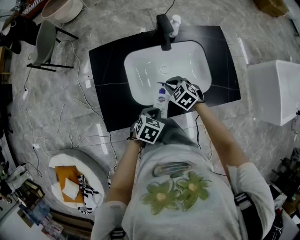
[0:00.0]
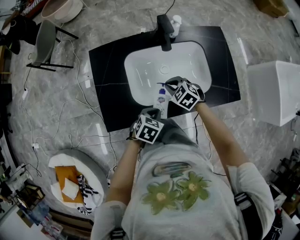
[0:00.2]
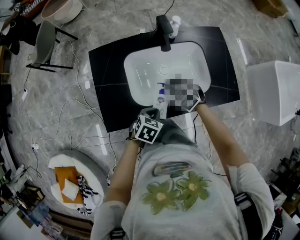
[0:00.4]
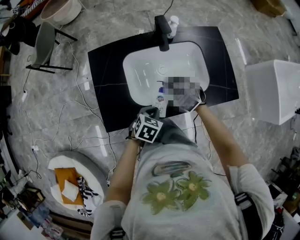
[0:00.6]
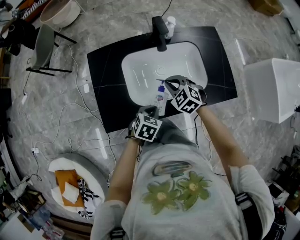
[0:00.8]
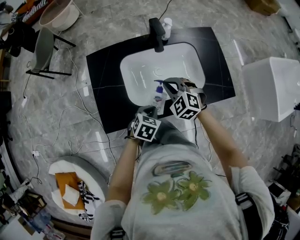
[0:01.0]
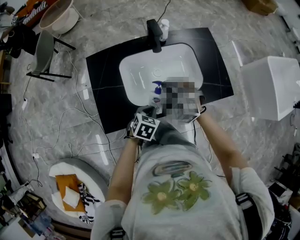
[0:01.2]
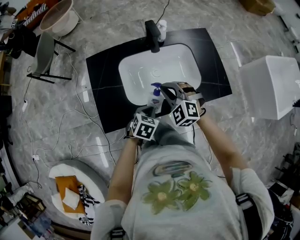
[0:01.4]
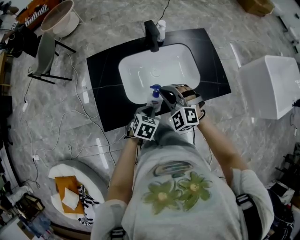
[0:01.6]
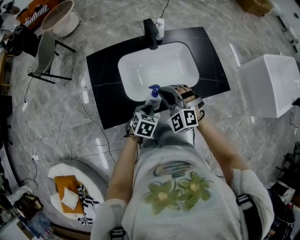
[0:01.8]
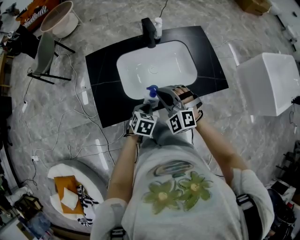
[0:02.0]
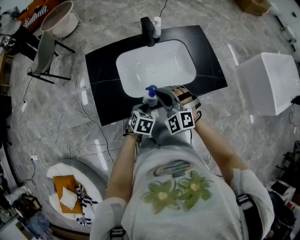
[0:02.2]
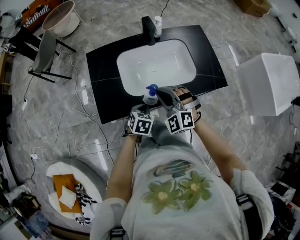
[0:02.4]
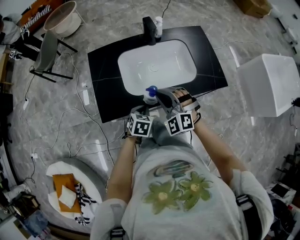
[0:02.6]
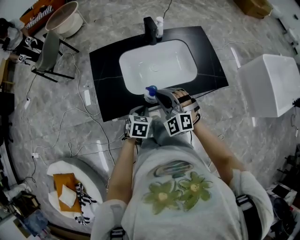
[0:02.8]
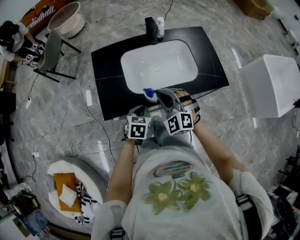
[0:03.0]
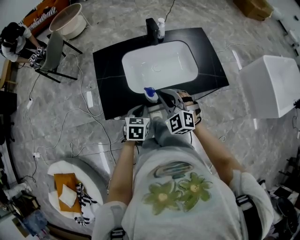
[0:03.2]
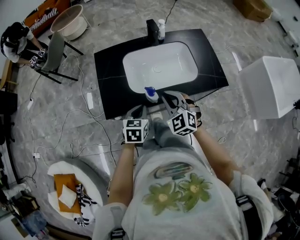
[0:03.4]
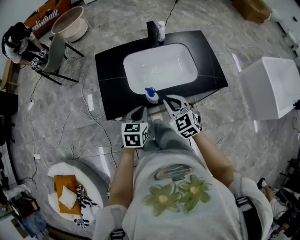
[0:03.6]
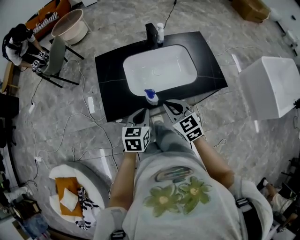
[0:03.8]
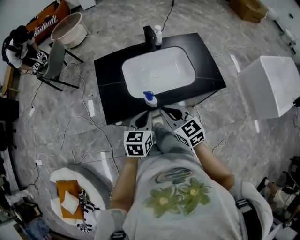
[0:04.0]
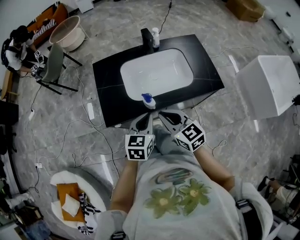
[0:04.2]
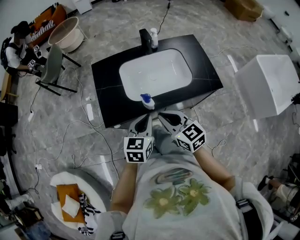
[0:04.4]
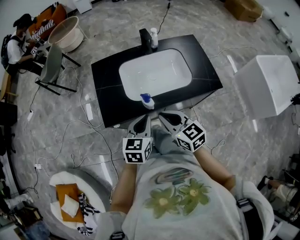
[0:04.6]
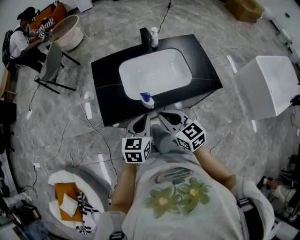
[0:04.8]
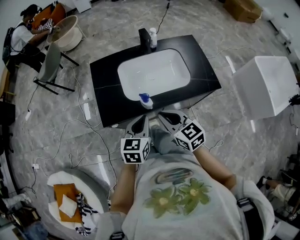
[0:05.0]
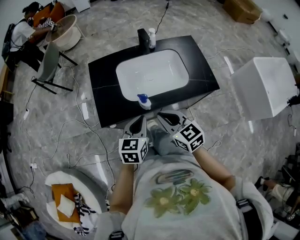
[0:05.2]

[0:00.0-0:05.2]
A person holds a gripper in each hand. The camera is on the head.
0:00.0 to 0:01.8: The right gripper moves upward and backward, roughly 20 cm, and changes its angle by some 40 degrees.
0:01.8 to 0:03.4: The left gripper goes about 10 cm upward and backward, and rotates approximately 20 degrees. Meanwhile the right gripper heads backward, covering about 10 cm, and turns by roughly 20 degrees.
0:03.4 to 0:05.2: The left gripper moves upward, about 10 cm, while the right gripper heads backward and upward, covering some 10 cm, and turns by some 40 degrees.

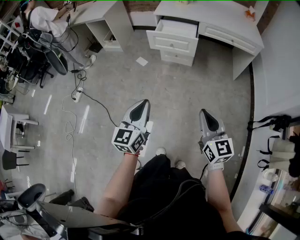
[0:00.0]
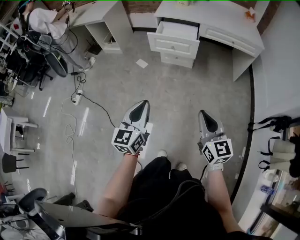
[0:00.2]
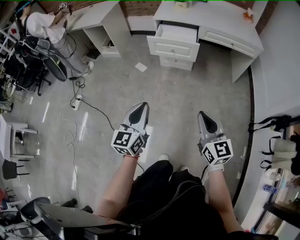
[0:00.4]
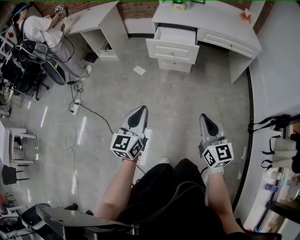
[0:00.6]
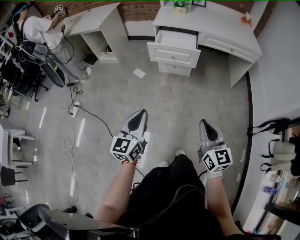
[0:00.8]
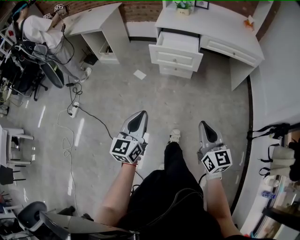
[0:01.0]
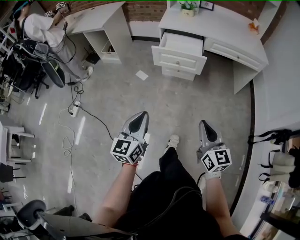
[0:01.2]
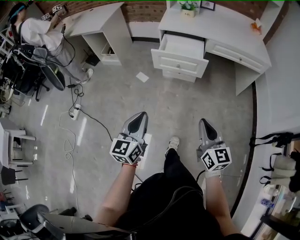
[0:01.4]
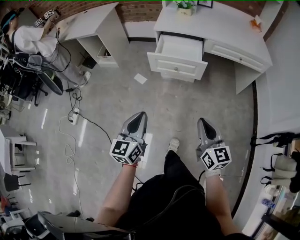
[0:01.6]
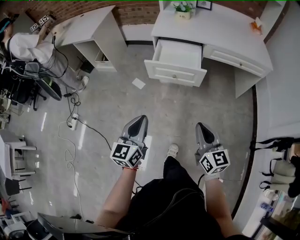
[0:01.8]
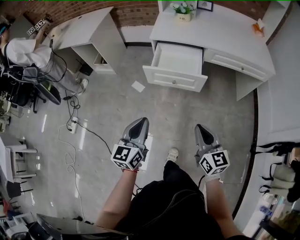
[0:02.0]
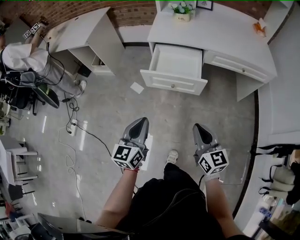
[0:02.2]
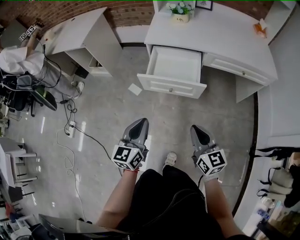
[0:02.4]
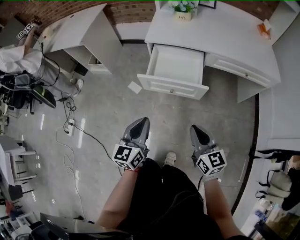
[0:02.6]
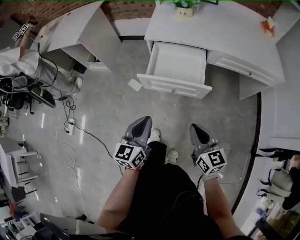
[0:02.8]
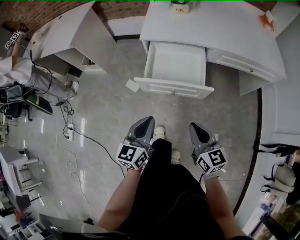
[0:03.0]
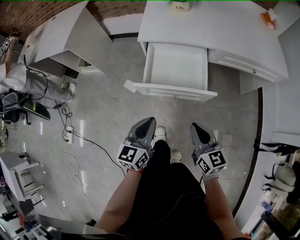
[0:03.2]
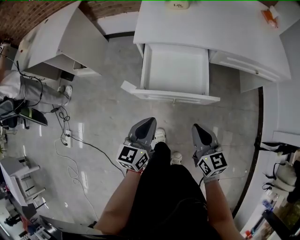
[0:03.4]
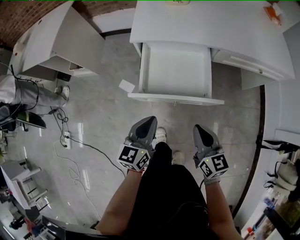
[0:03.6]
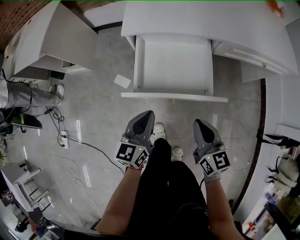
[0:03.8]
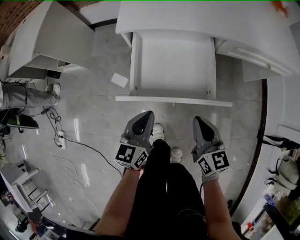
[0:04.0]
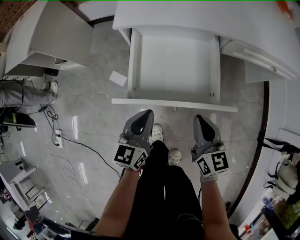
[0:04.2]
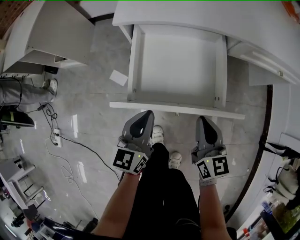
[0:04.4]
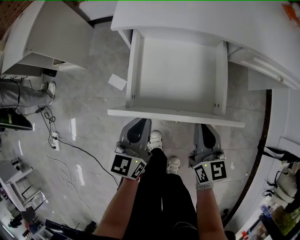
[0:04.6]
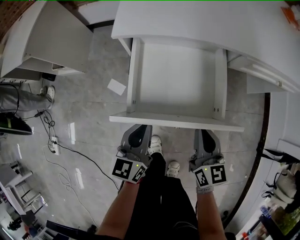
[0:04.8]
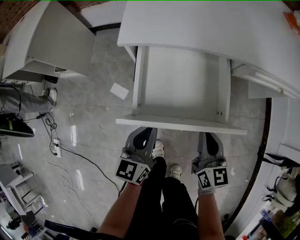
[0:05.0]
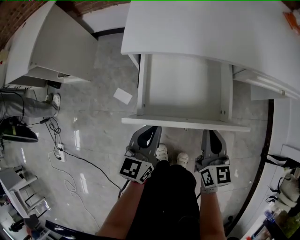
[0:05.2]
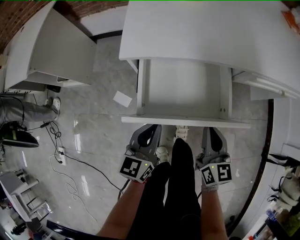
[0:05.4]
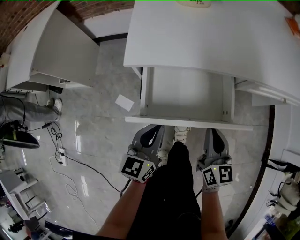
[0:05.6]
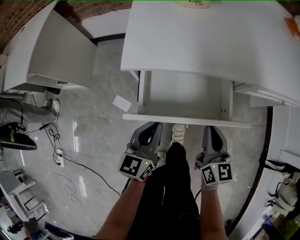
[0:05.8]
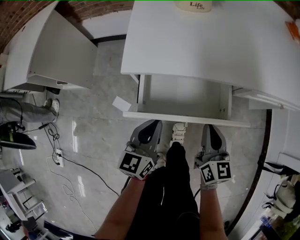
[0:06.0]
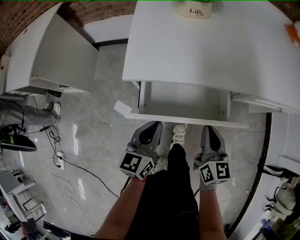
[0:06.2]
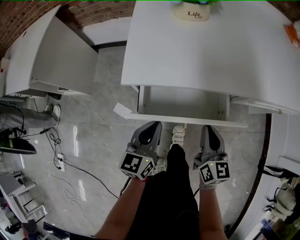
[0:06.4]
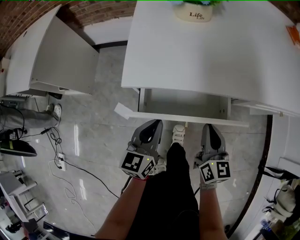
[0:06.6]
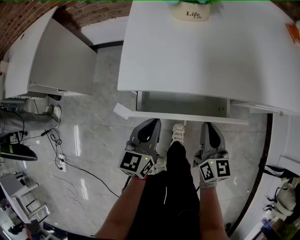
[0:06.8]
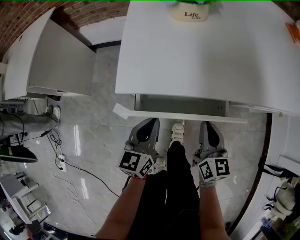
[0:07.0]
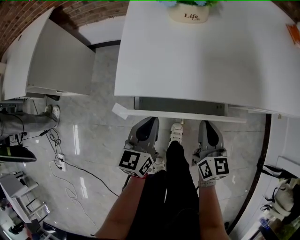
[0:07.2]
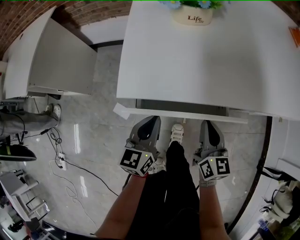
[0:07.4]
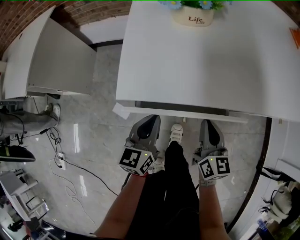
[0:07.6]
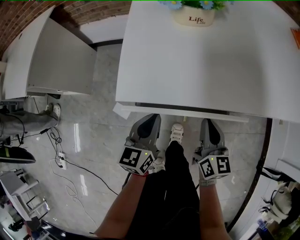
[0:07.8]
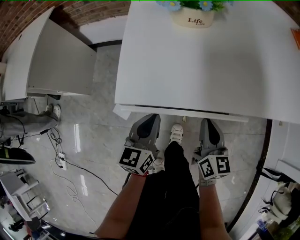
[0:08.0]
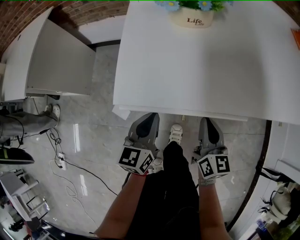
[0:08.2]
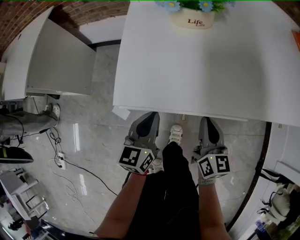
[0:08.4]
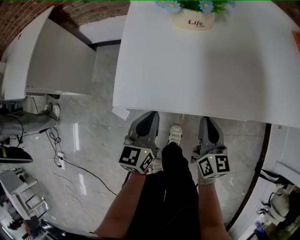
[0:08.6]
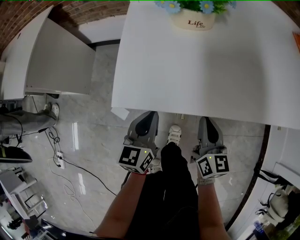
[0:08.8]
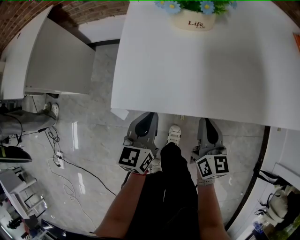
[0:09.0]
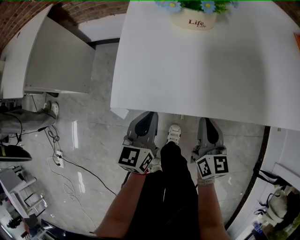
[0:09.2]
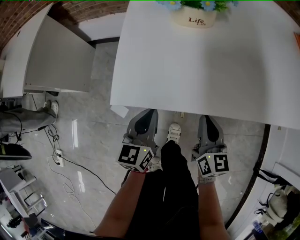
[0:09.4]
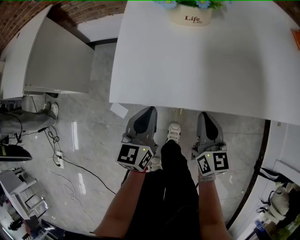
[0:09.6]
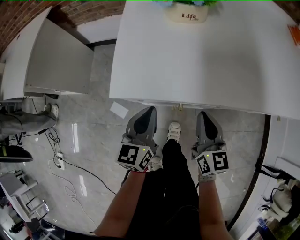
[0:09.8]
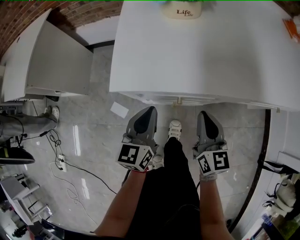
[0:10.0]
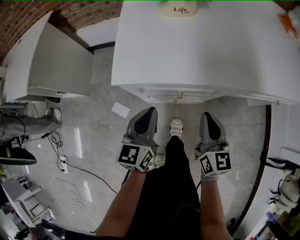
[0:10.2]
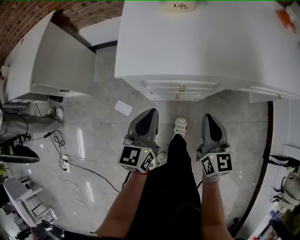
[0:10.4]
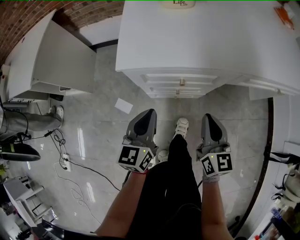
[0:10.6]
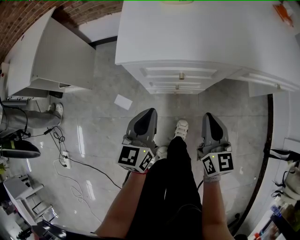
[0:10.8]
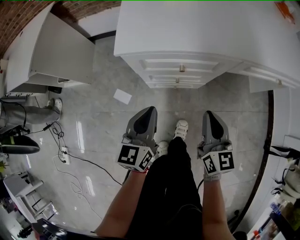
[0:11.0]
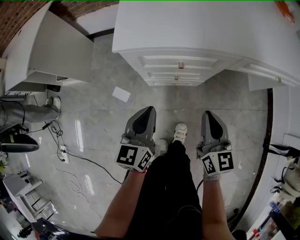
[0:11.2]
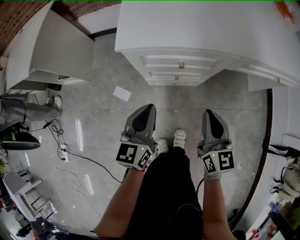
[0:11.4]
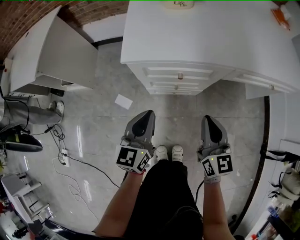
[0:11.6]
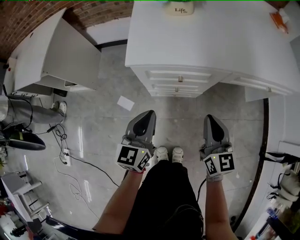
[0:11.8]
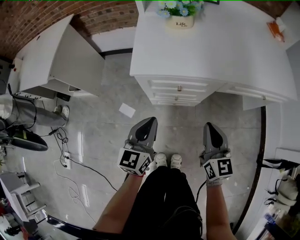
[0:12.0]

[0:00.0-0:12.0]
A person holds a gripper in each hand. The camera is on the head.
0:00.0 to 0:01.6: Both grippers travel together forward, about 20 cm.
0:01.6 to 0:03.0: The grippers both shift forward by some 25 cm.
0:03.0 to 0:04.4: The grippers both shift forward and downward by roughly 20 cm.
0:04.4 to 0:06.0: The two grippers go about 15 cm forward.
0:06.0 to 0:07.6: Both grippers move forward, approximately 10 cm.
0:07.6 to 0:09.0: There are only small adjustments of the grippers.
0:09.0 to 0:10.4: The two grippers go some 10 cm backward.
0:10.4 to 0:12.0: The grippers both shift upward and backward by some 10 cm.

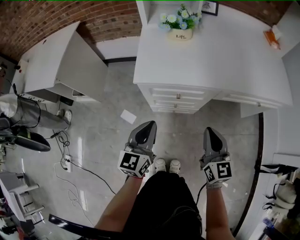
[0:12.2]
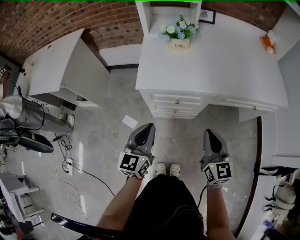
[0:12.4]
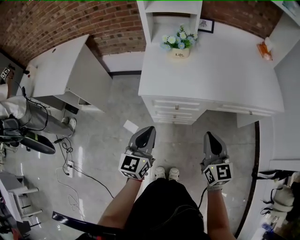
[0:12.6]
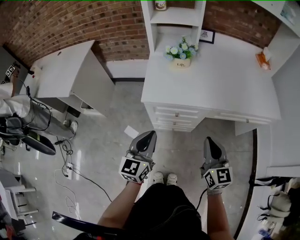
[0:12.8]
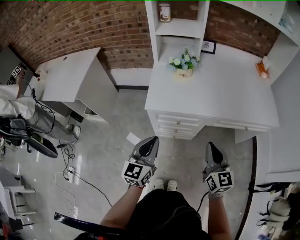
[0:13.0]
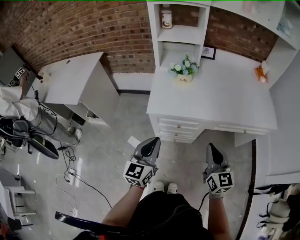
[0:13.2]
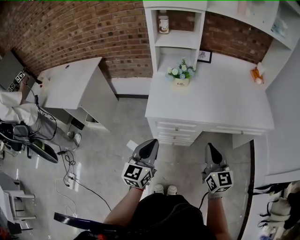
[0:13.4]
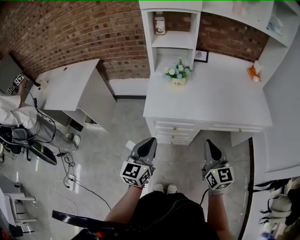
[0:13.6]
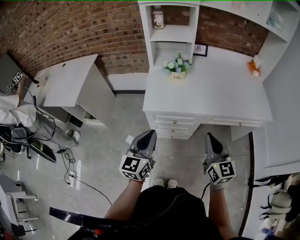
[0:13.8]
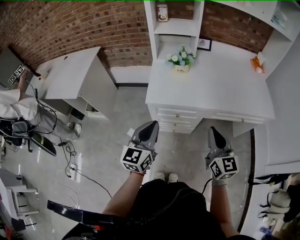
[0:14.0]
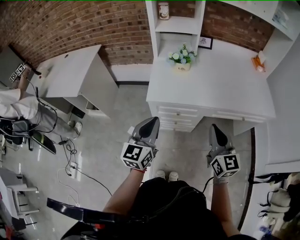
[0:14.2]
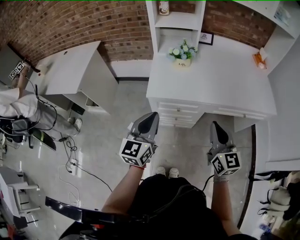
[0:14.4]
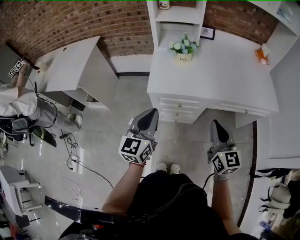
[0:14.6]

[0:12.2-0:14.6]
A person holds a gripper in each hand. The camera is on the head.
0:12.2 to 0:13.4: Both grippers travel together upward, about 15 cm.
0:13.4 to 0:14.6: The grippers stay close to where they were, moving slightly.

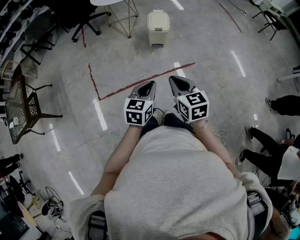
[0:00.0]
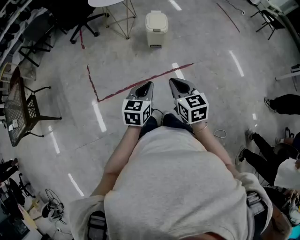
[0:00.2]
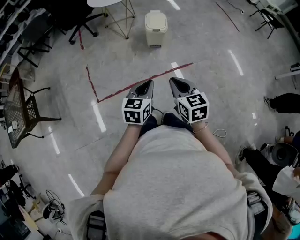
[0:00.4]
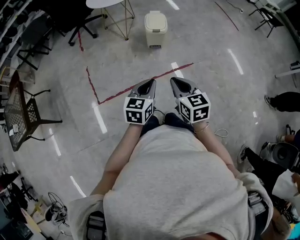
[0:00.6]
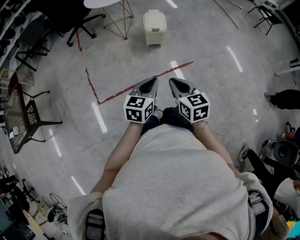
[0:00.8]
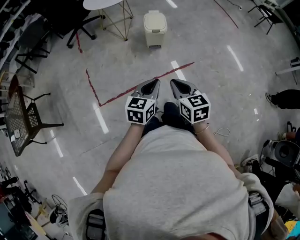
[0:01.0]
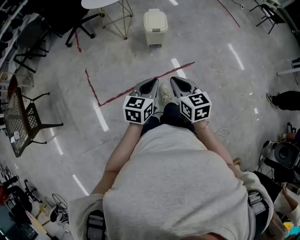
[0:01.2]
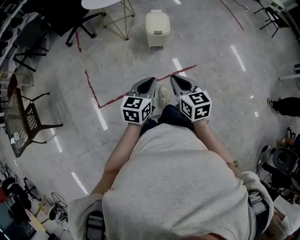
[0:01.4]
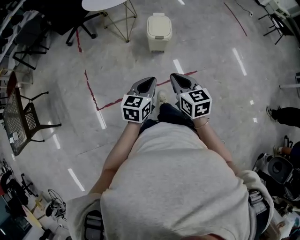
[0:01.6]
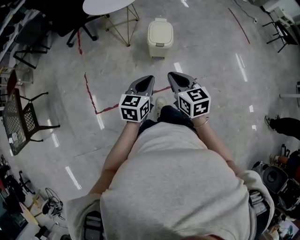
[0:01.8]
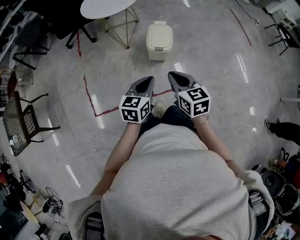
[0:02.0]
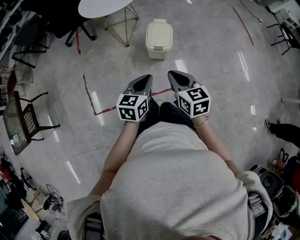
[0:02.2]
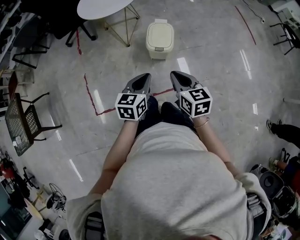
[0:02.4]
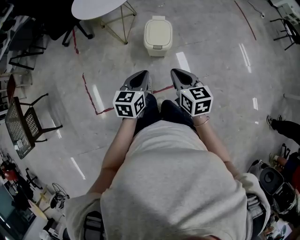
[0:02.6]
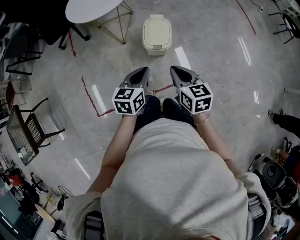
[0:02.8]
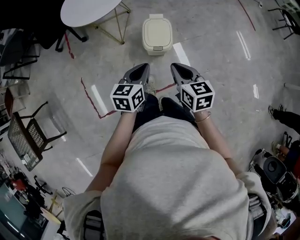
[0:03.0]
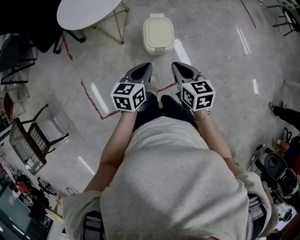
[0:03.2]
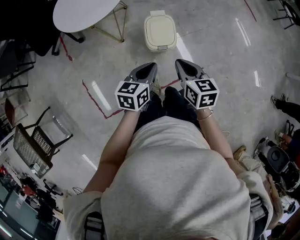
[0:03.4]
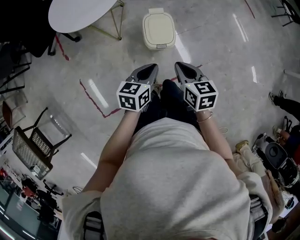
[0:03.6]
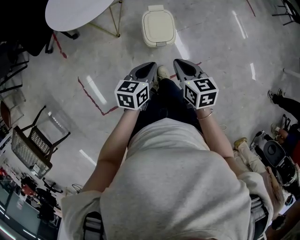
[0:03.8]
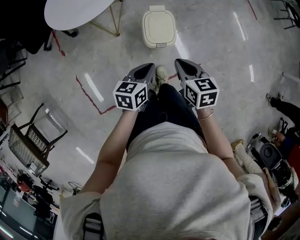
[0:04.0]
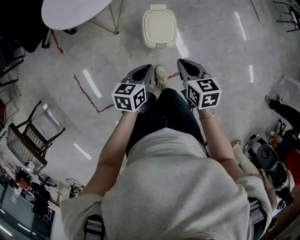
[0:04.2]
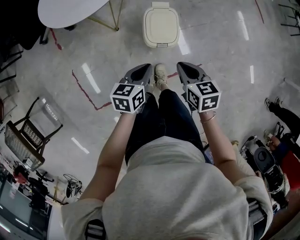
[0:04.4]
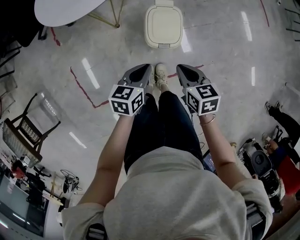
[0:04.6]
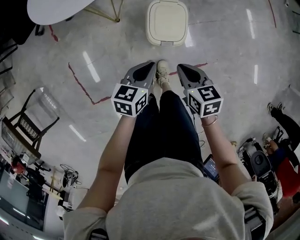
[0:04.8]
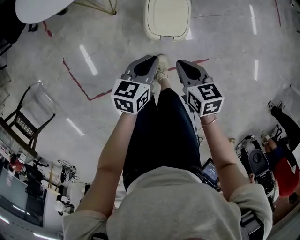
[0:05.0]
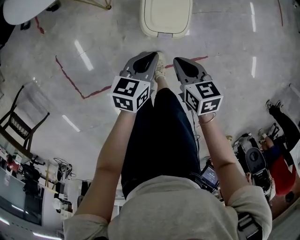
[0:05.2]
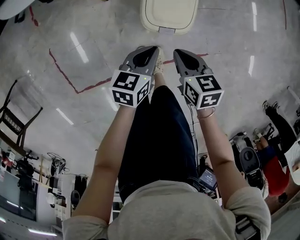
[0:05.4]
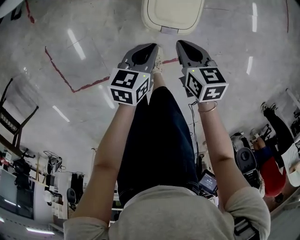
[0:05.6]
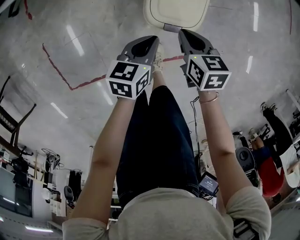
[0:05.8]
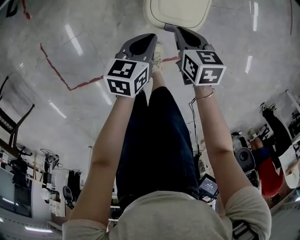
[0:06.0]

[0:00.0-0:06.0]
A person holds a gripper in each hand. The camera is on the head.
0:00.0 to 0:01.6: Both grippers travel together forward, approximately 20 cm.
0:01.6 to 0:03.0: The two grippers go roughly 25 cm forward.
0:03.0 to 0:04.4: The grippers both shift downward and forward by some 15 cm.
0:04.4 to 0:06.0: The two grippers go approximately 25 cm downward.
